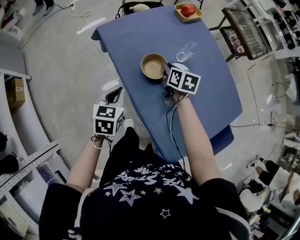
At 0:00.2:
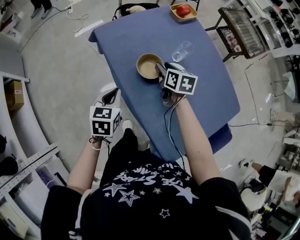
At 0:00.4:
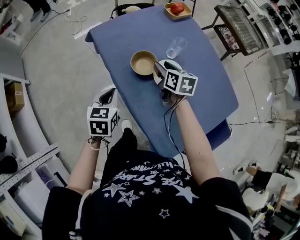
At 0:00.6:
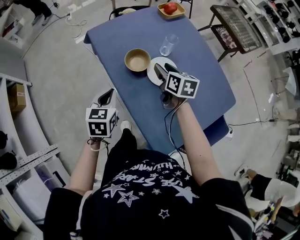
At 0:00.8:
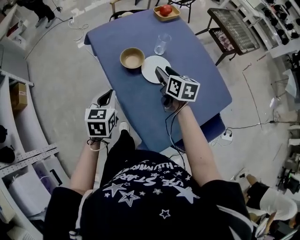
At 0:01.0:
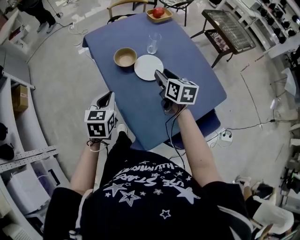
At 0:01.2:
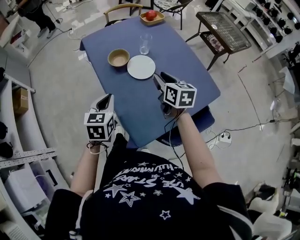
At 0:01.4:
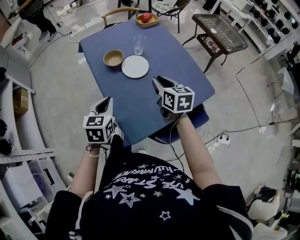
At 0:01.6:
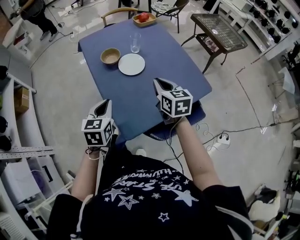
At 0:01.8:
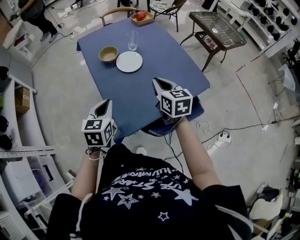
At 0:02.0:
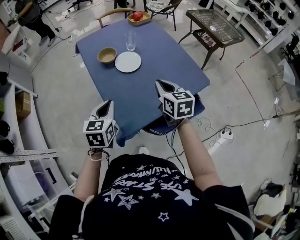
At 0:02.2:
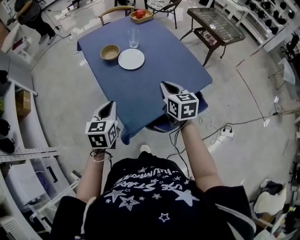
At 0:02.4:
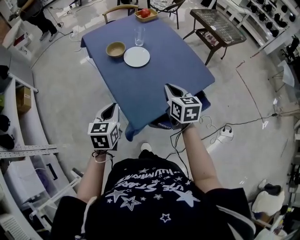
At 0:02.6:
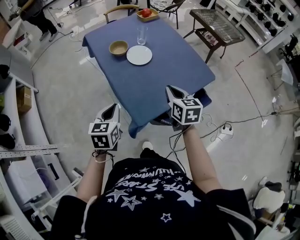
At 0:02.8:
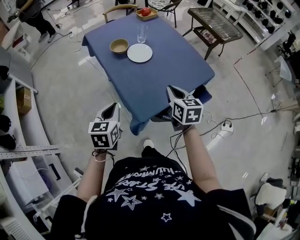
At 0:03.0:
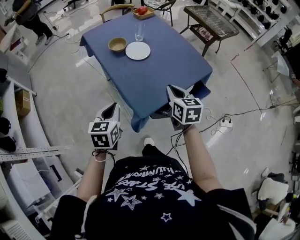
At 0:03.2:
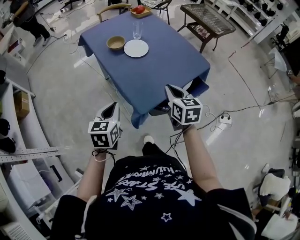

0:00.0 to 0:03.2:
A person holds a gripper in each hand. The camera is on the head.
0:00.0 to 0:01.6: Both grippers move backward, to the right and upward, roughly 30 cm. The right gripper swivels about 30 degrees, and opens and closes again.
0:01.6 to 0:03.2: The left gripper heads backward and to the left, covering about 15 cm; the right gripper travels backward by some 15 cm.

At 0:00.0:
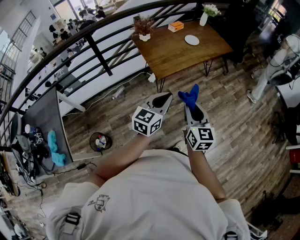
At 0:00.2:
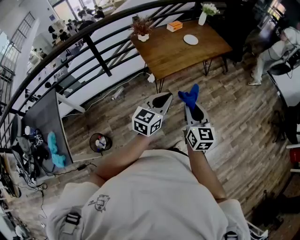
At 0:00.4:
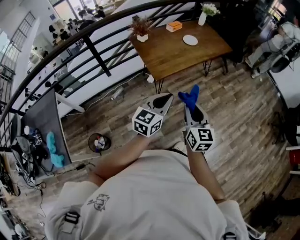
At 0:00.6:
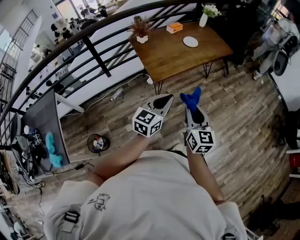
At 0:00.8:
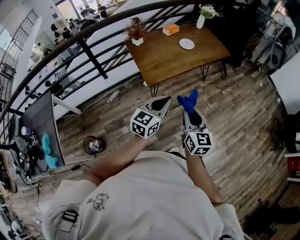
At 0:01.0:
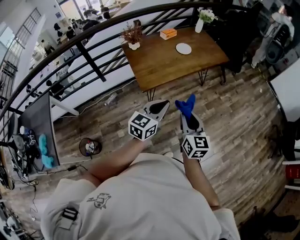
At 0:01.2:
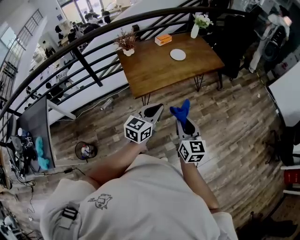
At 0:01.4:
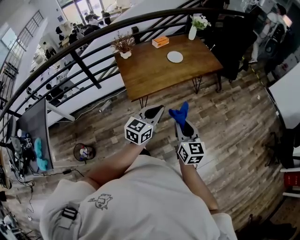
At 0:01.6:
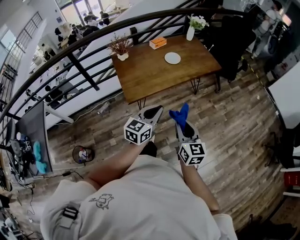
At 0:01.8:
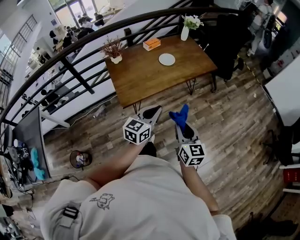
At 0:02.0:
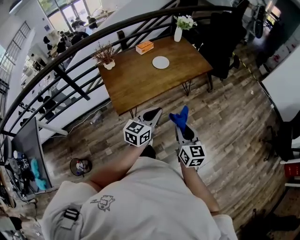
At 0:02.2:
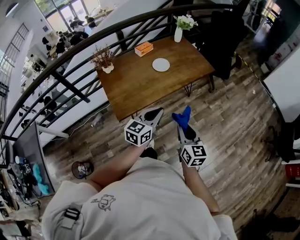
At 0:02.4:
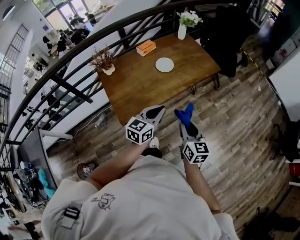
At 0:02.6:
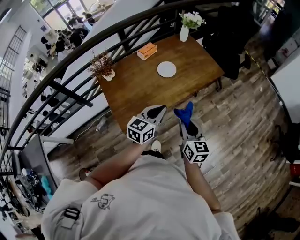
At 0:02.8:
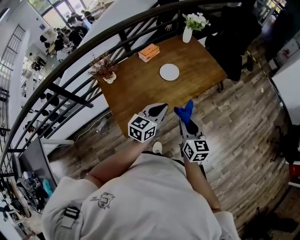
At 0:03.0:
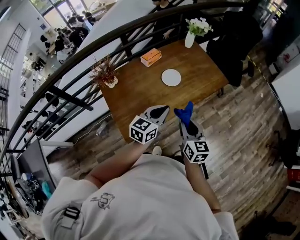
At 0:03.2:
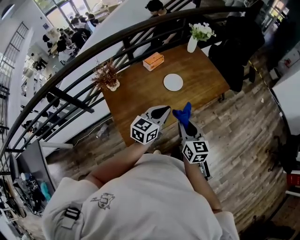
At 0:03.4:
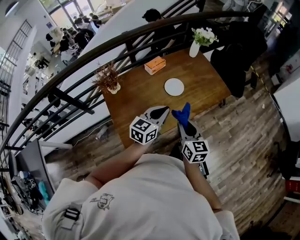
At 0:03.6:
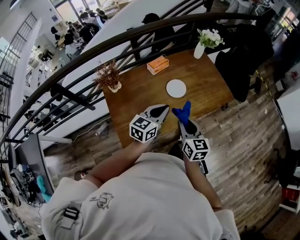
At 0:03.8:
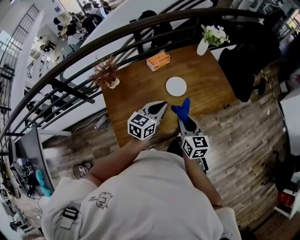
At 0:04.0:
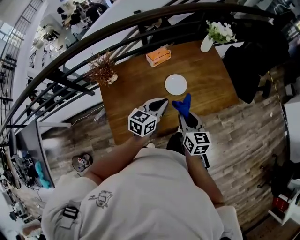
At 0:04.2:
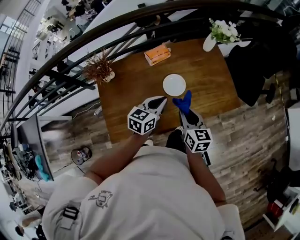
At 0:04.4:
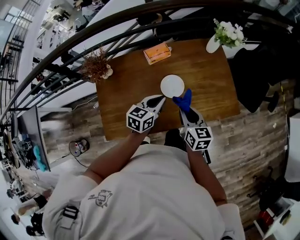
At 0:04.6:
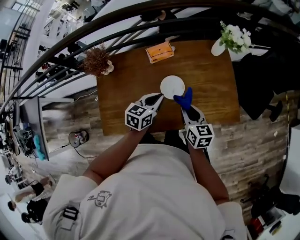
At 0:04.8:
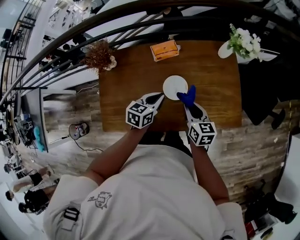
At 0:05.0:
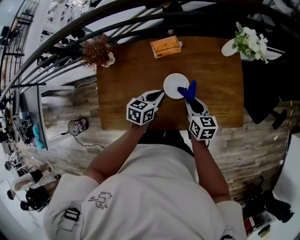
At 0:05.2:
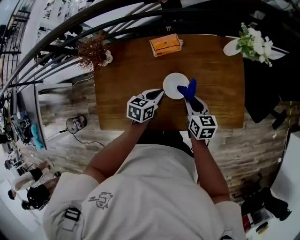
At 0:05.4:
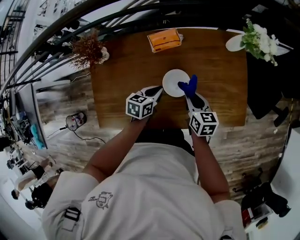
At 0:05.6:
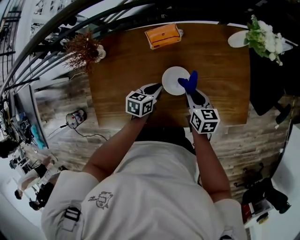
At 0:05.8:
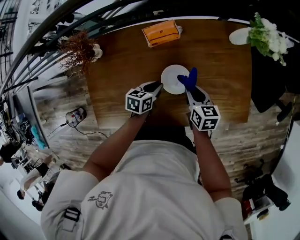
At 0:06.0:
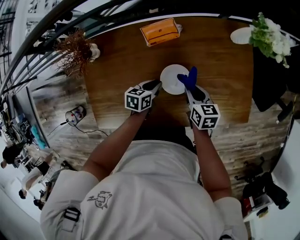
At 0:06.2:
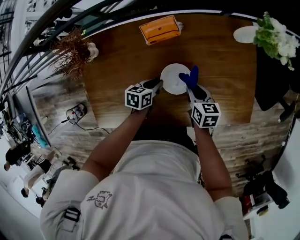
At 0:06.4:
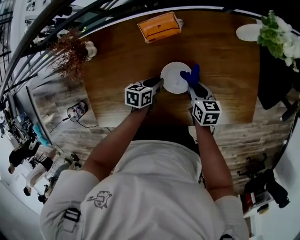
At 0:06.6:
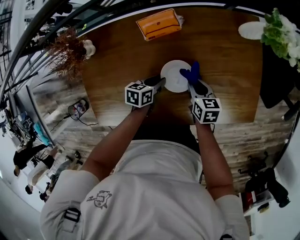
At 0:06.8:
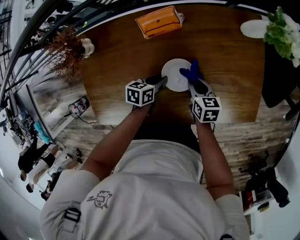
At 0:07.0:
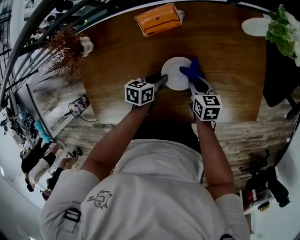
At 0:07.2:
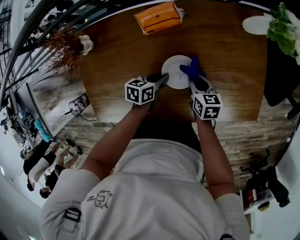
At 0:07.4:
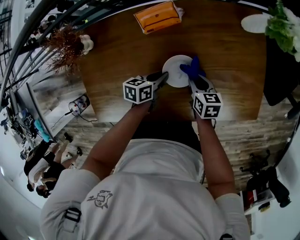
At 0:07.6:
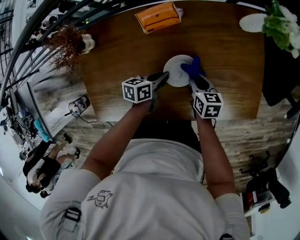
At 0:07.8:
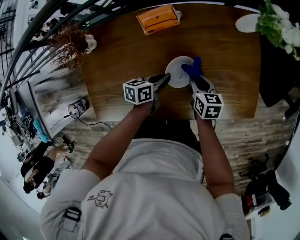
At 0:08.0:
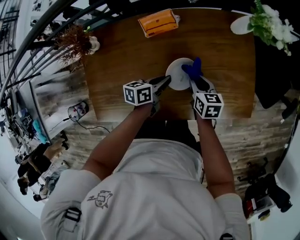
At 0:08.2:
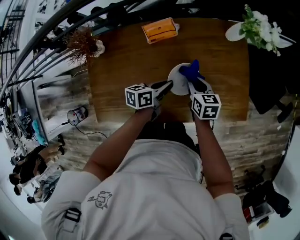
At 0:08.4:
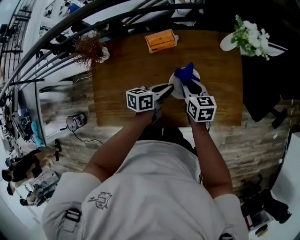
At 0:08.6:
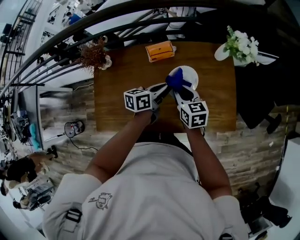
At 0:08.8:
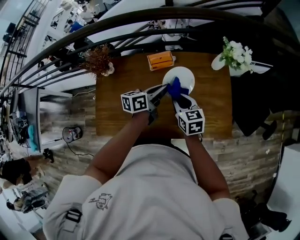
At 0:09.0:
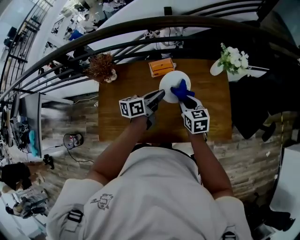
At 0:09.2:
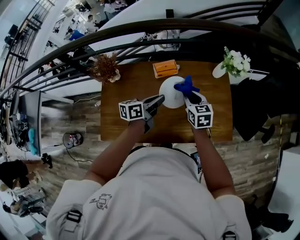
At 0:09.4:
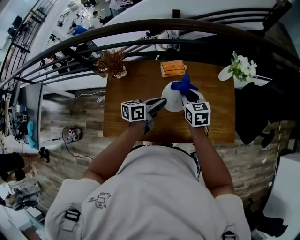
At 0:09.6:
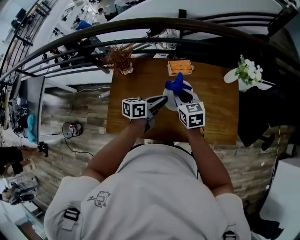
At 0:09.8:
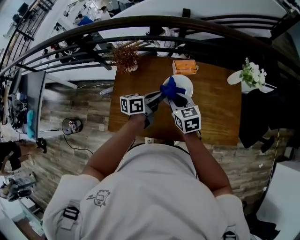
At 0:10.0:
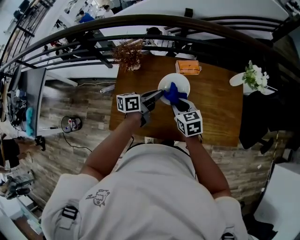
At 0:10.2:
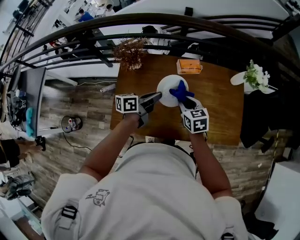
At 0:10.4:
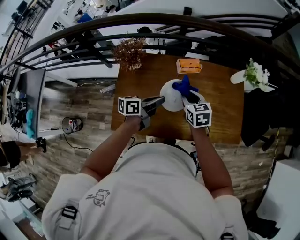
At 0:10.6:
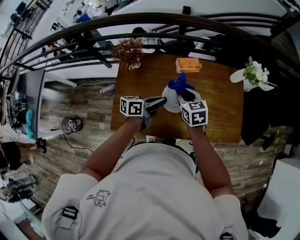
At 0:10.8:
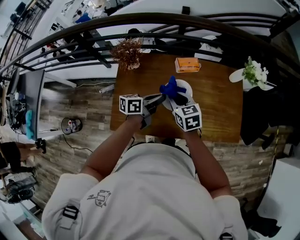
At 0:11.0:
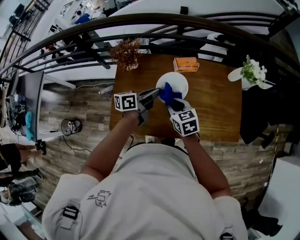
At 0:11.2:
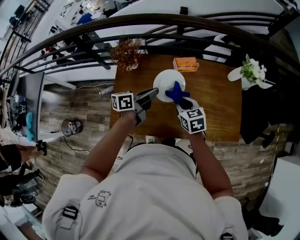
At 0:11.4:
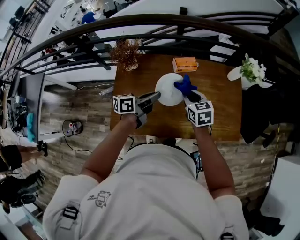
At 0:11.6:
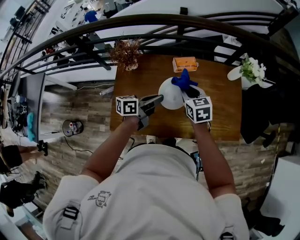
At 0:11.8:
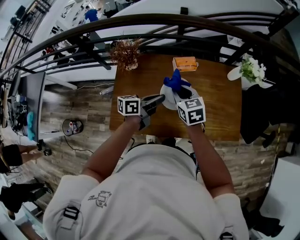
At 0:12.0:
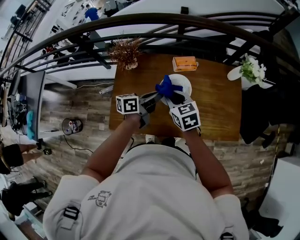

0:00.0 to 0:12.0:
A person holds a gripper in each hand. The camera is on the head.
0:00.0 to 0:01.6: The left gripper shifts approximately 30 cm forward and to the right; the right gripper heads to the right and forward, covering about 25 cm.
0:01.6 to 0:03.0: The grippers both shift forward by some 35 cm.
0:03.0 to 0:04.4: The grippers both shift forward by about 25 cm. The left gripper changes its angle by approximately 30 degrees; the right gripper changes its angle by some 30 degrees.
0:04.4 to 0:06.0: The grippers both shift downward and forward by some 25 cm. The right gripper rotates about 20 degrees. The left gripper rotates about 30 degrees.
0:06.0 to 0:07.6: The right gripper heads downward, covering roughly 5 cm.
0:07.6 to 0:09.0: Both grippers move upward, about 25 cm. The right gripper rotates roughly 20 degrees. The left gripper swivels roughly 30 degrees.
0:09.0 to 0:10.4: The left gripper is displaced to the left and backward by roughly 15 cm. The right gripper shifts roughly 15 cm to the left.
0:10.4 to 0:12.0: The right gripper goes left and right, approximately 10 cm each way, reversing 2 times.

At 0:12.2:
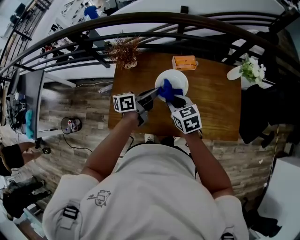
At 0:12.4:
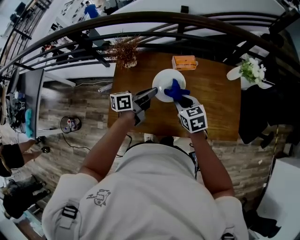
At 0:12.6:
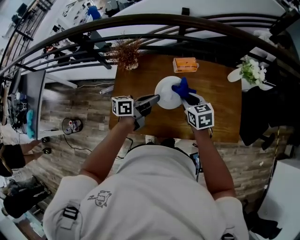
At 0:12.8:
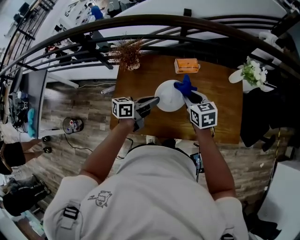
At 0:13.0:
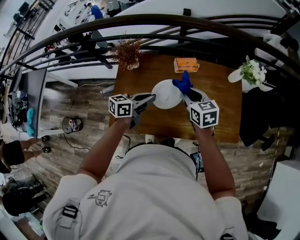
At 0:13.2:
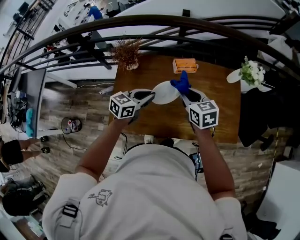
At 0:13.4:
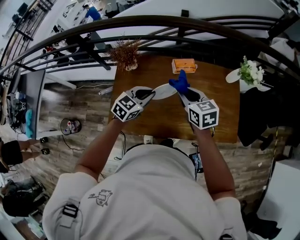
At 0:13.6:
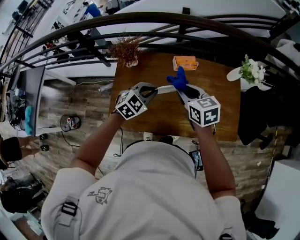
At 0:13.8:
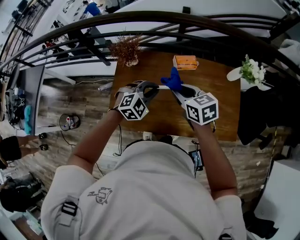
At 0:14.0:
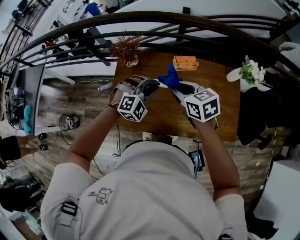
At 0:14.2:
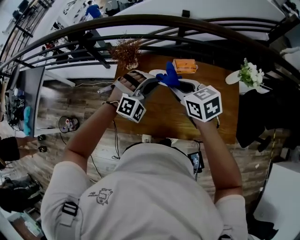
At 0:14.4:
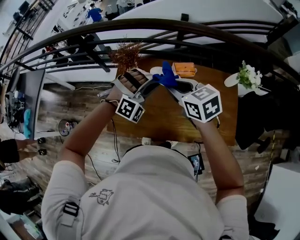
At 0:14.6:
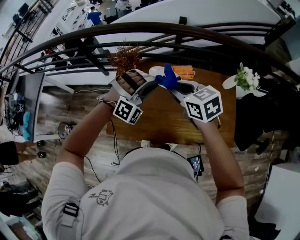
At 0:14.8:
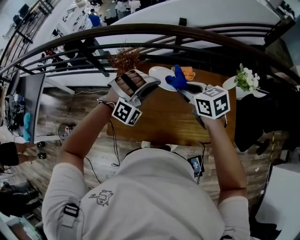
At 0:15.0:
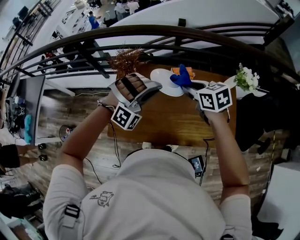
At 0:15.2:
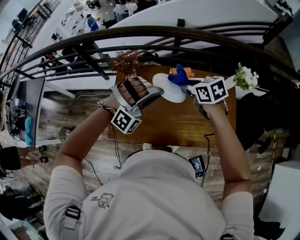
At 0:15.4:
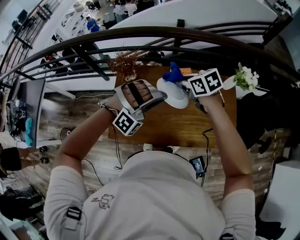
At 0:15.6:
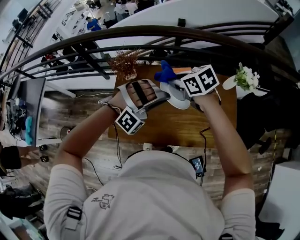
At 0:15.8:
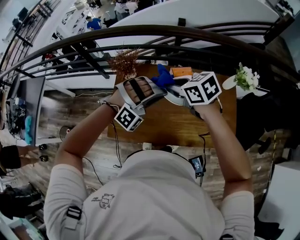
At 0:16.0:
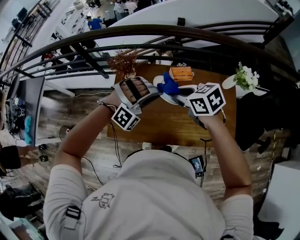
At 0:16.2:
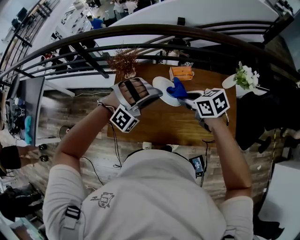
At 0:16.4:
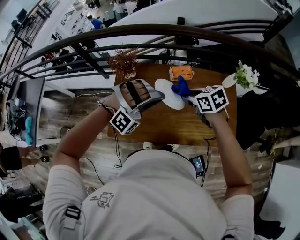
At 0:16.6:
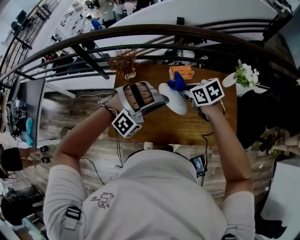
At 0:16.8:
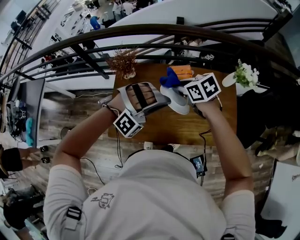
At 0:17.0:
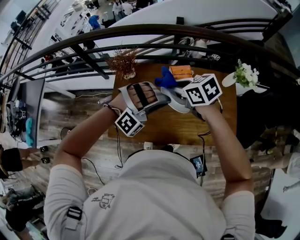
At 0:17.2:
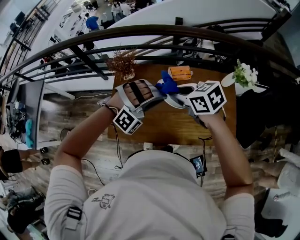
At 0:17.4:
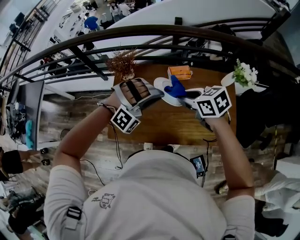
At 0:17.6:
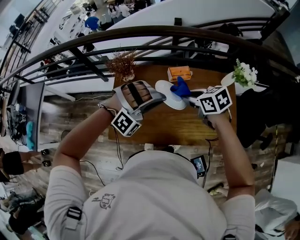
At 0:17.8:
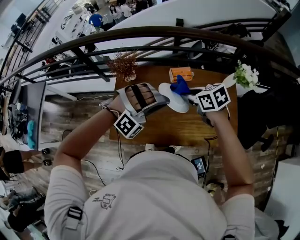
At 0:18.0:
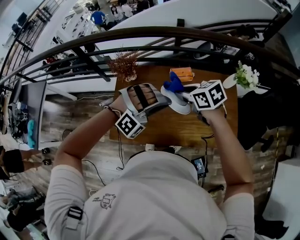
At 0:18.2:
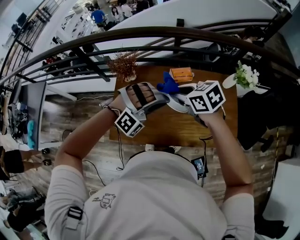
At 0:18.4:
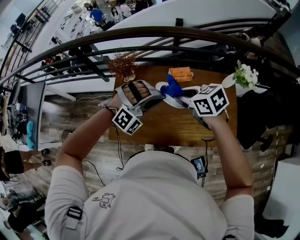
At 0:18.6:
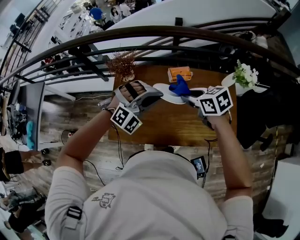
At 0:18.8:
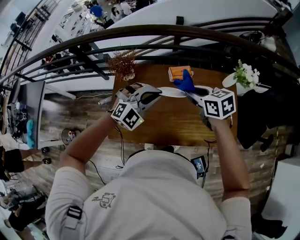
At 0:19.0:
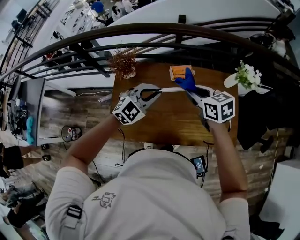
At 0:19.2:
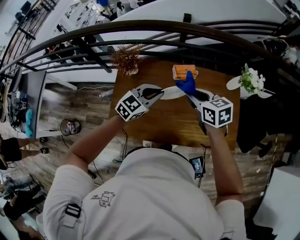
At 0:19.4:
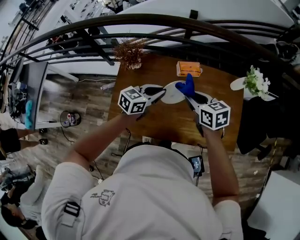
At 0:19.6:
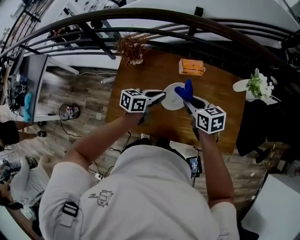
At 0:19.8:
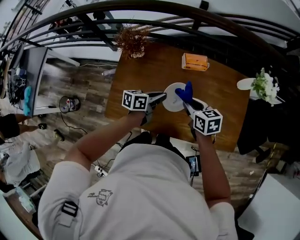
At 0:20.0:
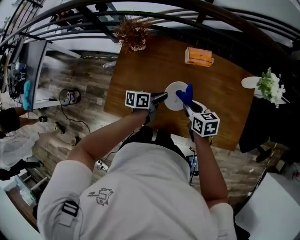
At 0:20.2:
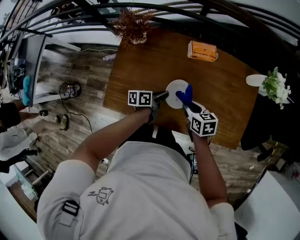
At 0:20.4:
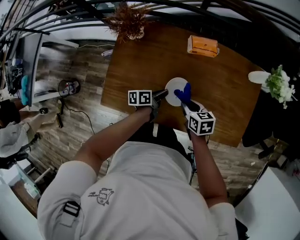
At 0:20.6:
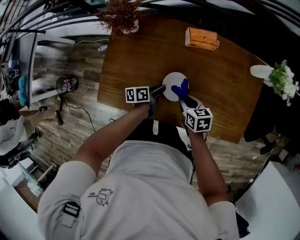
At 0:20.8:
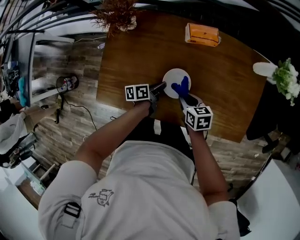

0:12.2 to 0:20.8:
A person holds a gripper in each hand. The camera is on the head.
0:12.2 to 0:13.6: The right gripper goes some 5 cm upward. Meanwhile the left gripper twists some 70 degrees clockwise, seen from behind.
0:13.6 to 0:15.0: The right gripper moves roughly 5 cm; the left gripper shifts about 15 cm upward, and rotates around the line of its fingers by approximately 70 degrees, clockwise from behind.
0:15.0 to 0:16.6: The right gripper travels downward by approximately 5 cm, and reaches about 5 cm backward, then returns, while the left gripper is displaced backward by approximately 5 cm.
0:18.0 to 0:19.4: The right gripper shifts approximately 5 cm downward. The left gripper shifts approximately 15 cm downward and forward, and twists approximately 110 degrees counterclockwise, seen from behind.
0:19.4 to 0:20.8: Both grippers move downward, some 30 cm. The left gripper rolls counterclockwise, seen from behind, by about 60 degrees.
